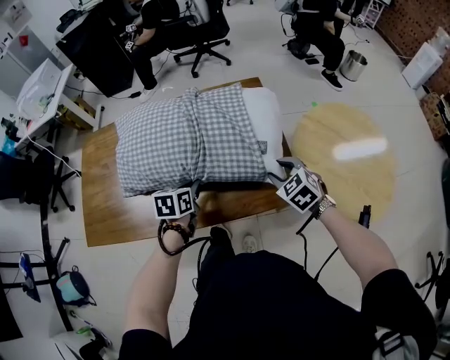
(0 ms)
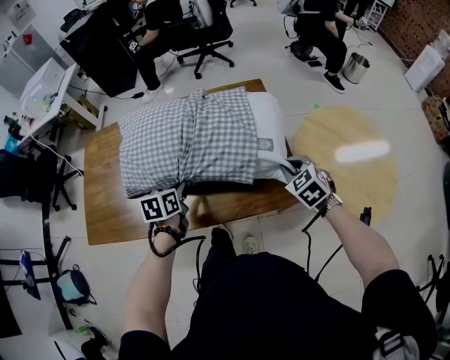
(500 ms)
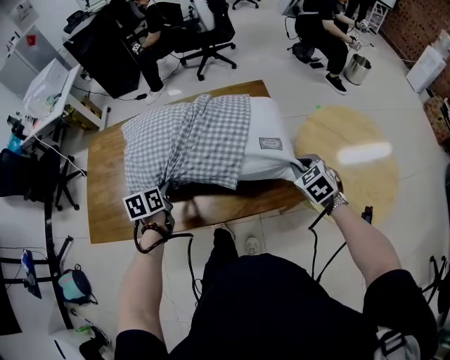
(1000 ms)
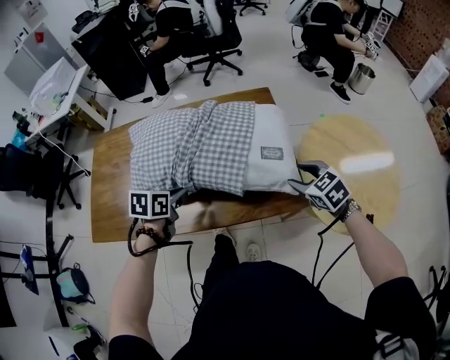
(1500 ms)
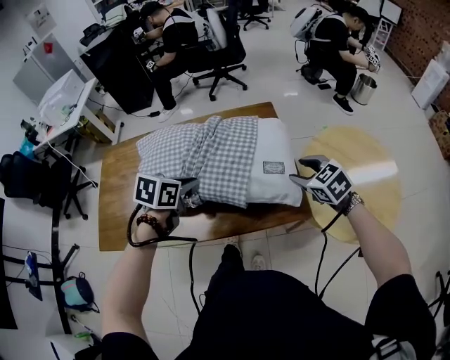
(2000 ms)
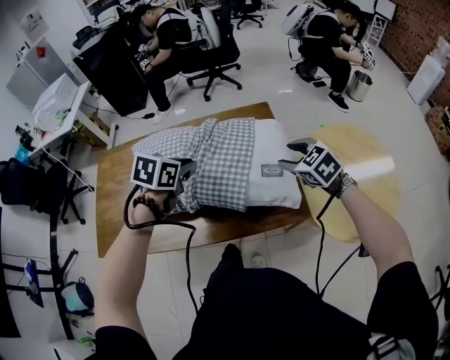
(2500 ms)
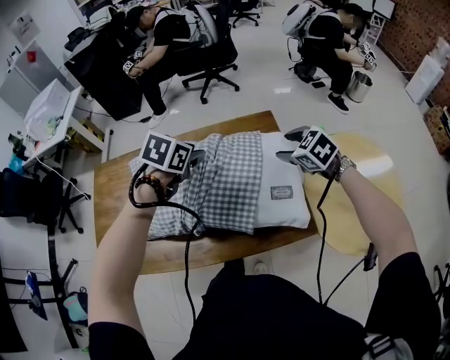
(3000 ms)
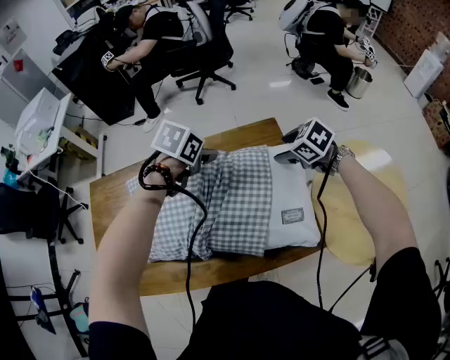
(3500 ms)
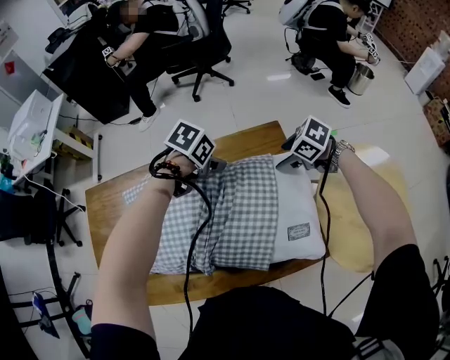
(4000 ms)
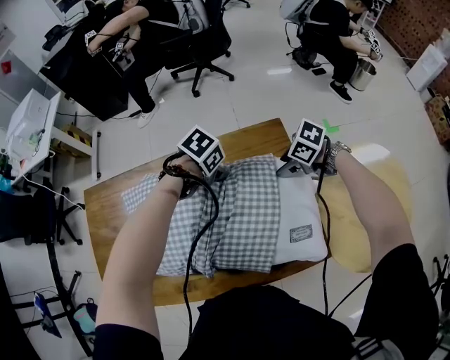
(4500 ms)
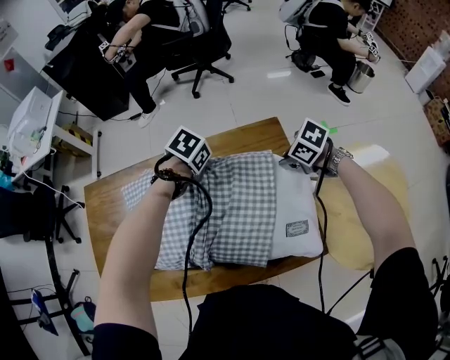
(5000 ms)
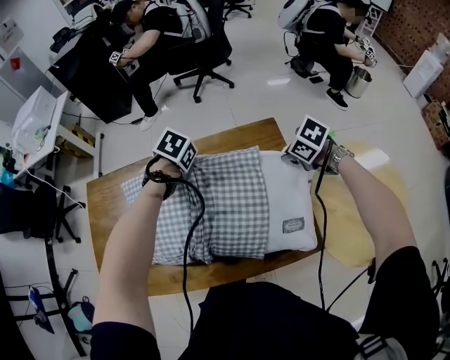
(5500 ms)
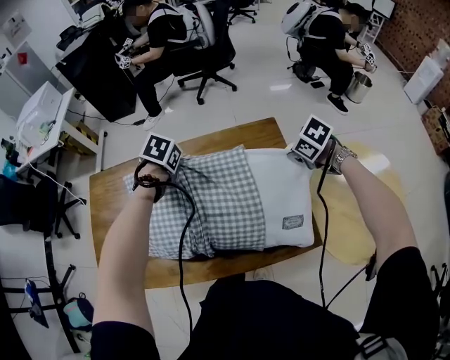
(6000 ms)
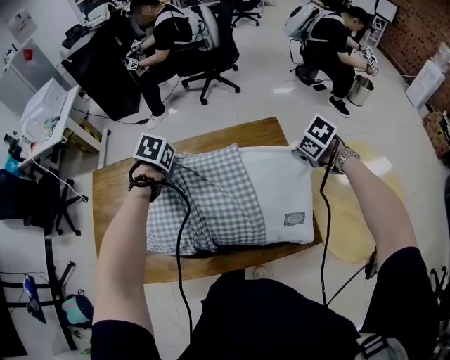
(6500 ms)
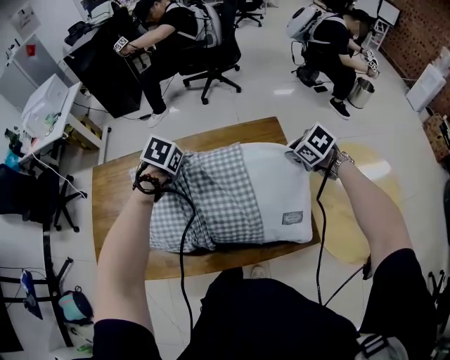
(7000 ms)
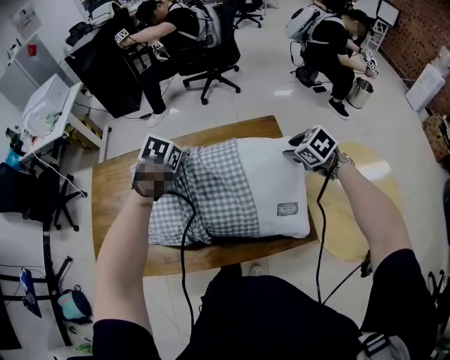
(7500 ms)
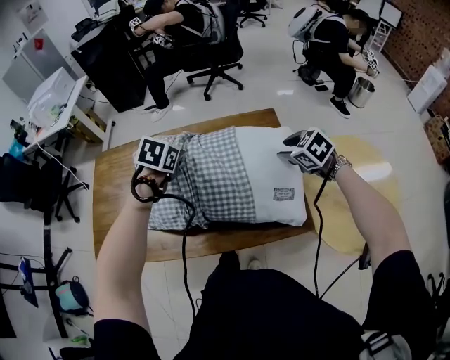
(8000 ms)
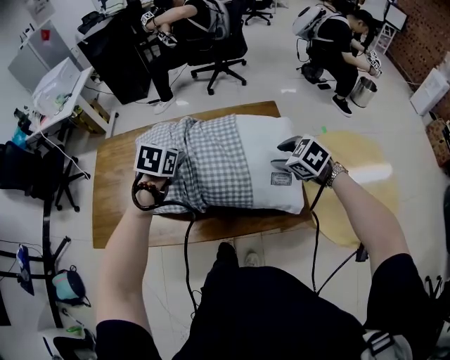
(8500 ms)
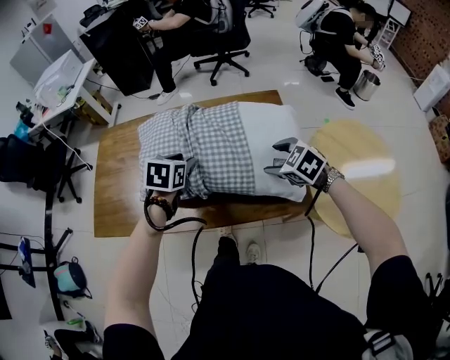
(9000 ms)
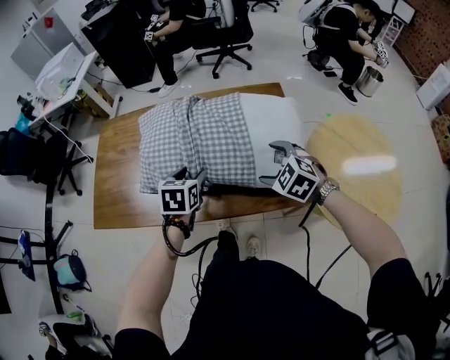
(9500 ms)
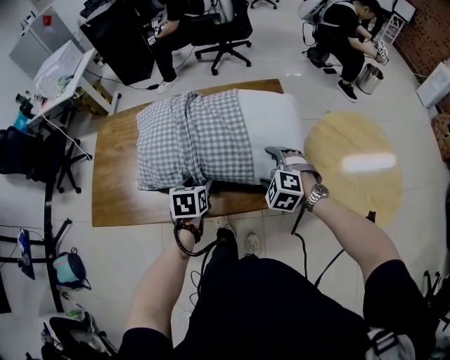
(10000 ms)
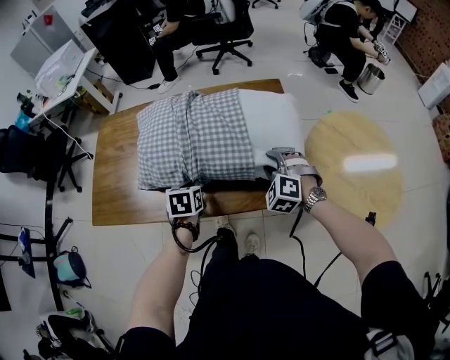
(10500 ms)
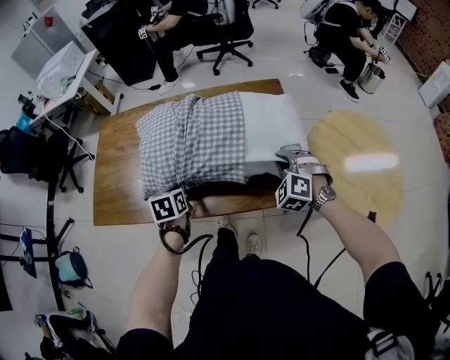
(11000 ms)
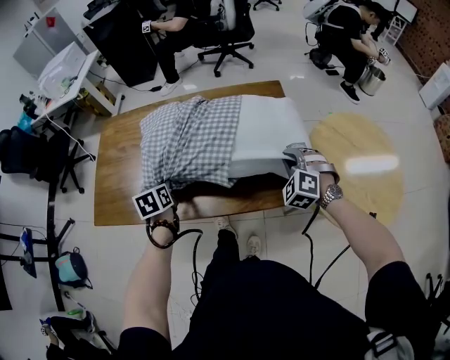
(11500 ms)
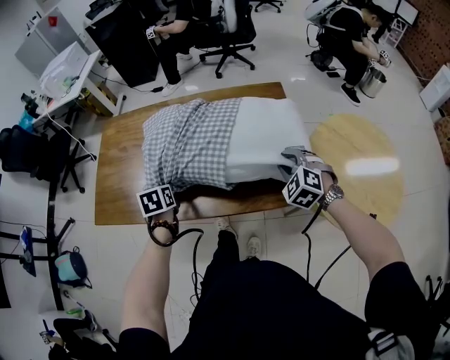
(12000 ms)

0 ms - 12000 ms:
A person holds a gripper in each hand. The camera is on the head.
0 ms - 2000 ms: The left gripper goes approximately 15 cm upward and backward, and travels to the left and back again, some 10 cm each way, while the right gripper moves to the right, upward and backward, some 10 cm, and closes, then opens again.
2000 ms - 4000 ms: The right gripper shifts by roughly 30 cm, and turns by about 40 degrees, while the left gripper travels upward and back again, roughly 5 cm each way, changes its angle by about 30 degrees, and opens.
4000 ms - 6000 ms: The right gripper ends up roughly 10 cm from where it was, and closes up. The left gripper changes place by roughly 15 cm, swivels about 20 degrees, and closes its fingers.
6000 ms - 8000 ms: Both grippers travel together backward, some 10 cm. The right gripper rotates some 20 degrees, and opens.
8000 ms - 10000 ms: The left gripper heads backward and downward, covering roughly 20 cm, changes its angle by approximately 20 degrees, and opens its fingers. The right gripper shifts roughly 15 cm backward, to the left and downward, rotates some 40 degrees, and opens.
10000 ms - 12000 ms: The left gripper travels to the left by about 10 cm, and closes, while the right gripper goes some 5 cm to the right, and closes up.

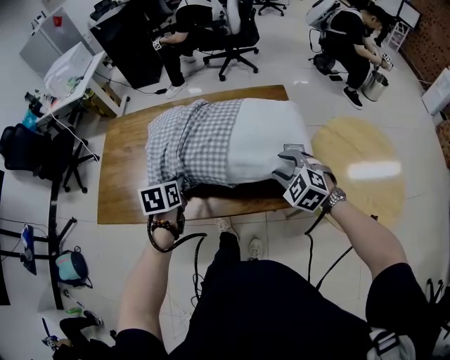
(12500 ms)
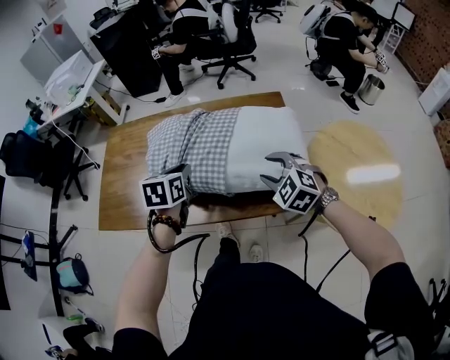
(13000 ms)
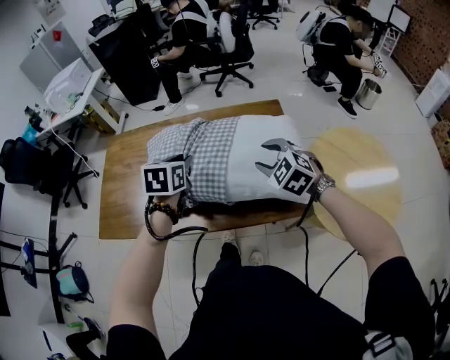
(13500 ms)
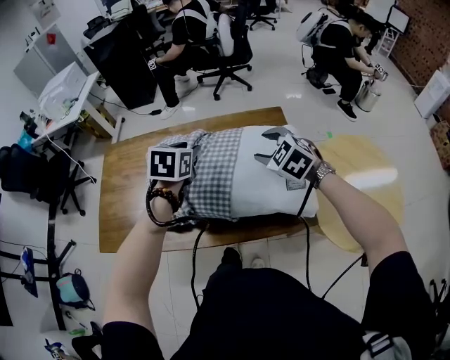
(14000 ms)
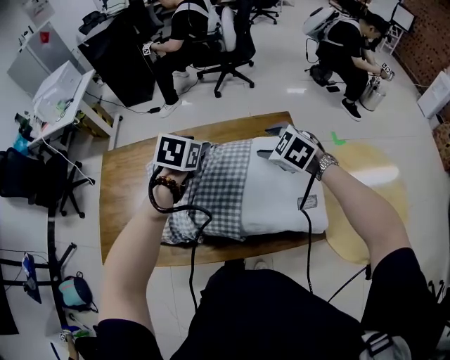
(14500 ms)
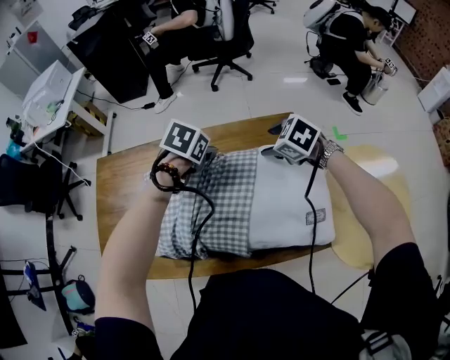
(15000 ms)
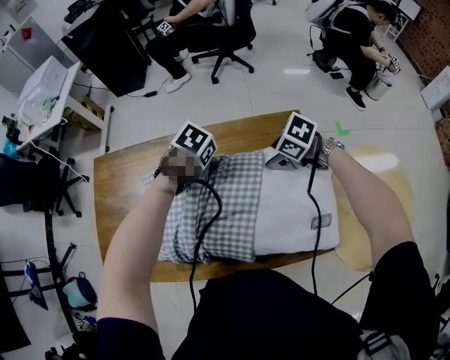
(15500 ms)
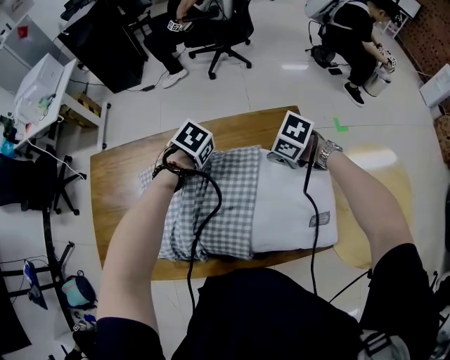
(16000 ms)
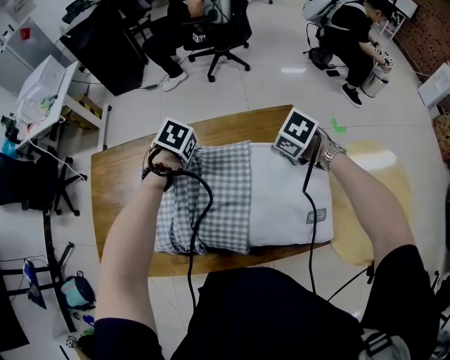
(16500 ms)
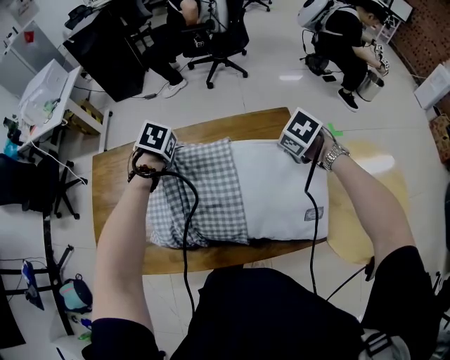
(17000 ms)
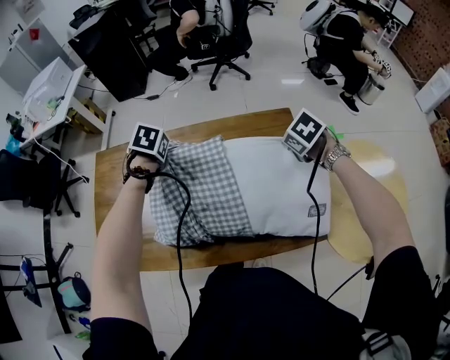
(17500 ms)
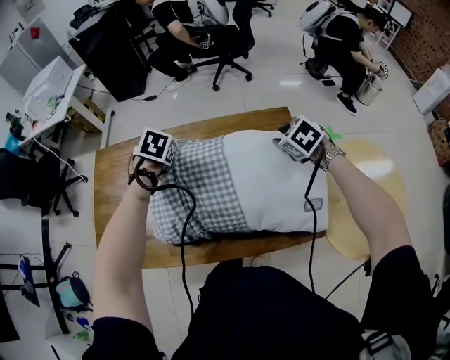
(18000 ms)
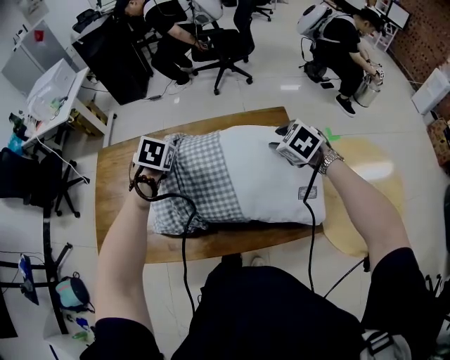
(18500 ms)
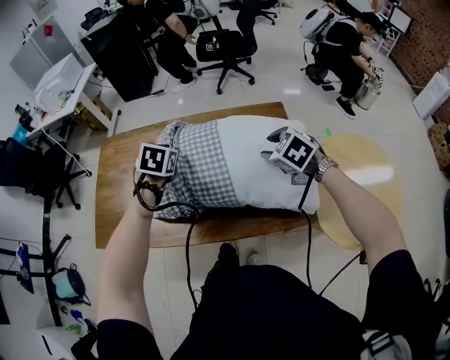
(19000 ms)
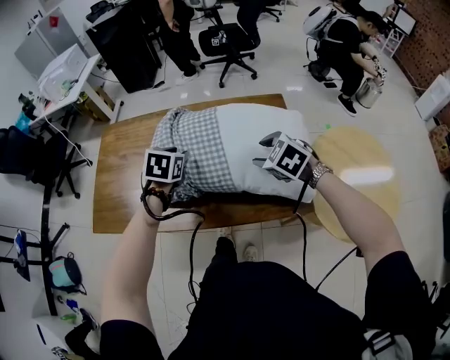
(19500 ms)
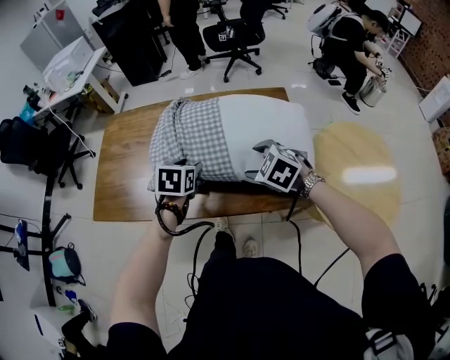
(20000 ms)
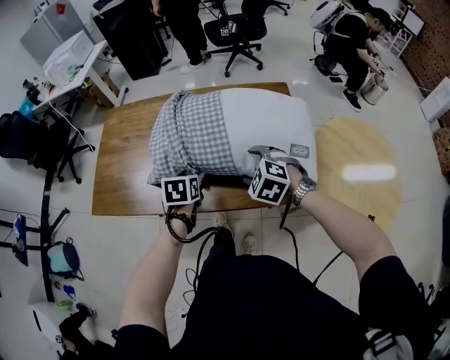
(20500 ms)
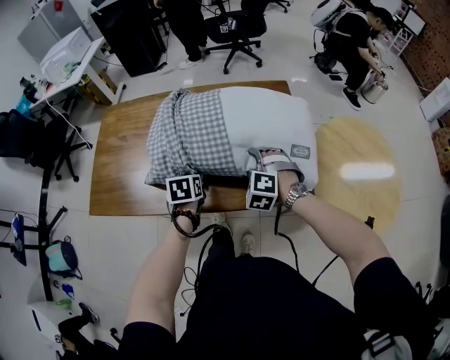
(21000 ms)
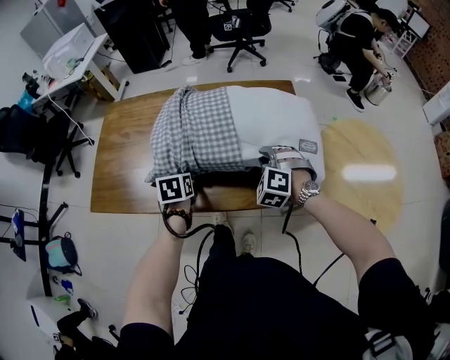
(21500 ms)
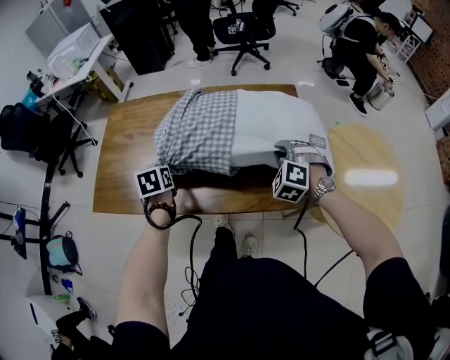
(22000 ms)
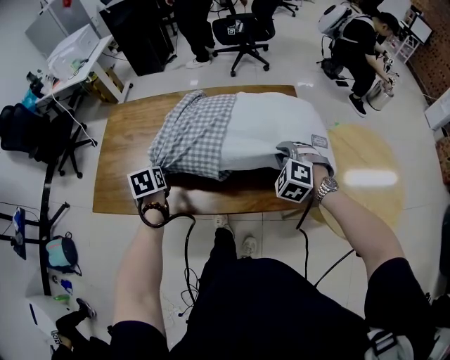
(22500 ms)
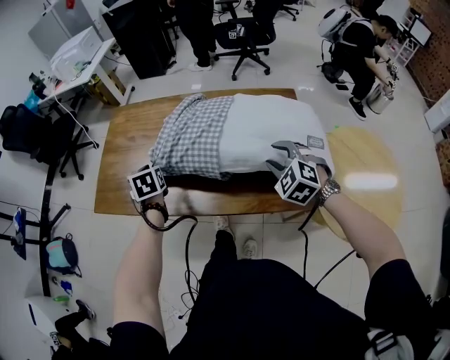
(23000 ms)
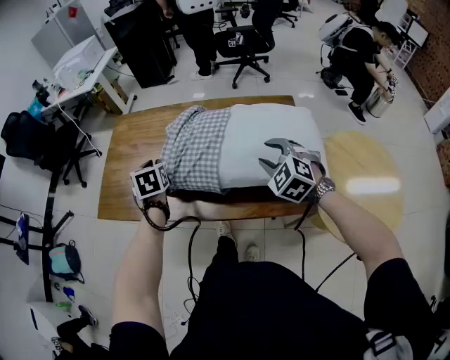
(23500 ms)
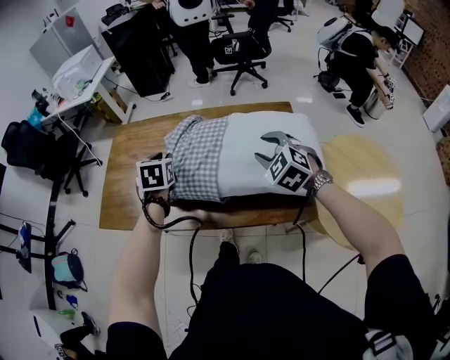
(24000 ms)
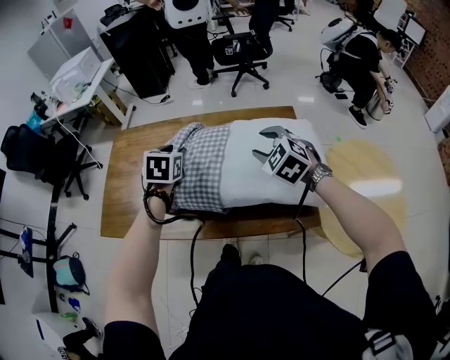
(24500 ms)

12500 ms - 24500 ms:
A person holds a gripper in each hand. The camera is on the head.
12500 ms - 14500 ms: The left gripper heads forward, upward and to the right, covering some 25 cm, changes its angle by about 30 degrees, and opens its fingers. Meanwhile the right gripper heads forward, covering about 20 cm.
14500 ms - 16500 ms: The right gripper ends up approximately 10 cm from where it was, swivels approximately 30 degrees, and closes. The left gripper shifts by approximately 15 cm, turns by approximately 30 degrees, and closes up.
16500 ms - 18500 ms: The right gripper moves backward, about 10 cm, swivels some 20 degrees, and opens. The left gripper is displaced backward and to the left by some 15 cm.
18500 ms - 20500 ms: The left gripper goes some 20 cm backward and downward, changes its angle by some 30 degrees, and opens up; the right gripper goes roughly 20 cm backward, to the left and downward, swivels some 20 degrees, and opens up.
20500 ms - 22500 ms: The right gripper moves to the right and forward, about 10 cm, changes its angle by approximately 20 degrees, and closes. The left gripper heads to the left, covering about 15 cm, and closes.
22500 ms - 24500 ms: The right gripper travels upward by some 10 cm, rotates approximately 20 degrees, and opens up; the left gripper travels upward and to the right by roughly 20 cm, turns by roughly 30 degrees, and opens up.

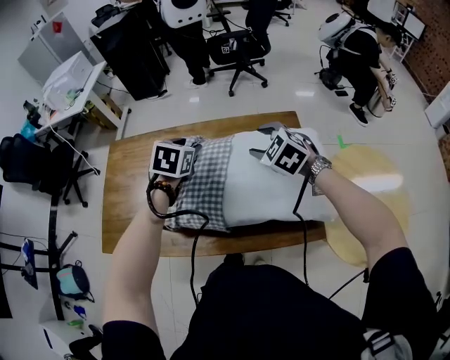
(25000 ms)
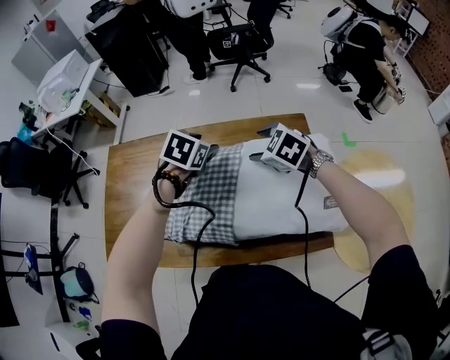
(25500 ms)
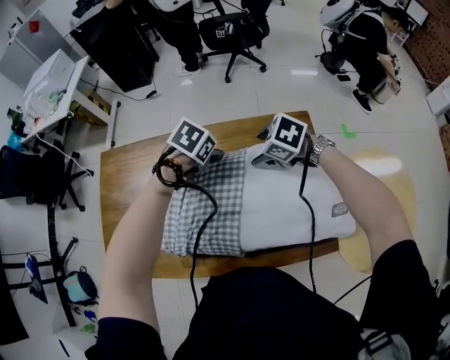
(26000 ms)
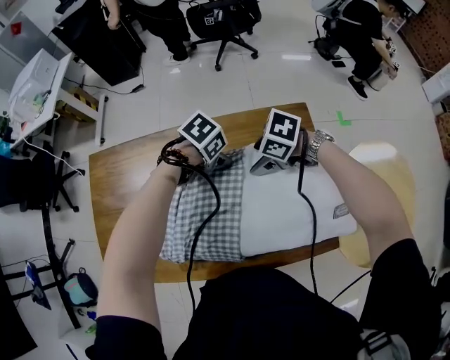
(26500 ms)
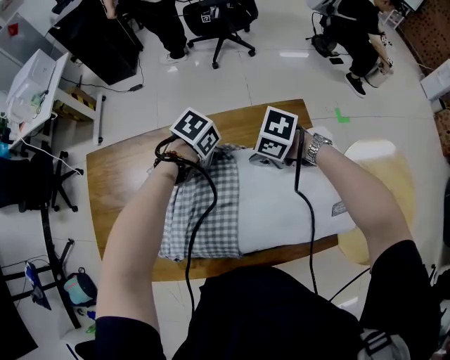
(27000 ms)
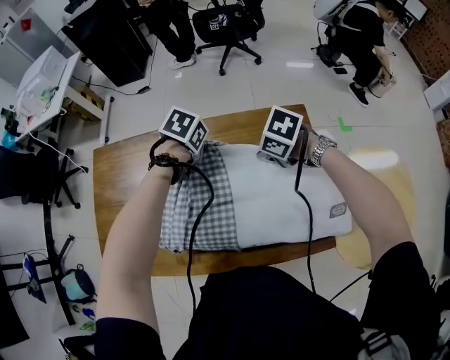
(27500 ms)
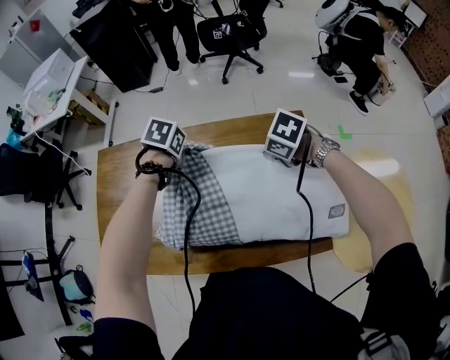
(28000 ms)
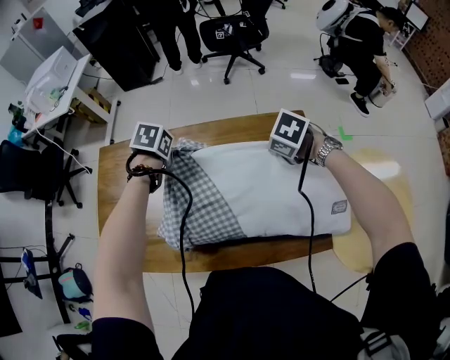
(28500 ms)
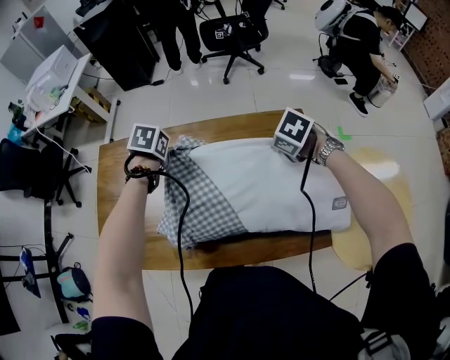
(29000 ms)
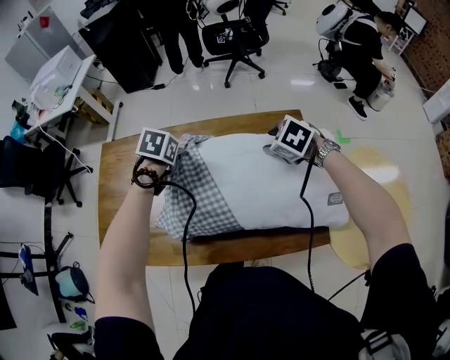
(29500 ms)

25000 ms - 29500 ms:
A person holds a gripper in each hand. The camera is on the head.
25000 ms - 27000 ms: The left gripper moves roughly 20 cm, changes its angle by some 50 degrees, and closes, while the right gripper changes place by some 20 cm, turns by roughly 50 degrees, and closes.
27000 ms - 29500 ms: The right gripper changes place by about 10 cm, turns by approximately 30 degrees, and opens. Meanwhile the left gripper ends up some 15 cm from where it was, and rotates roughly 30 degrees.
